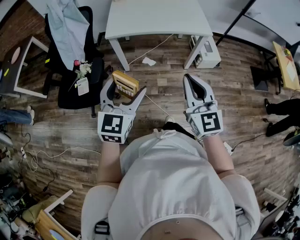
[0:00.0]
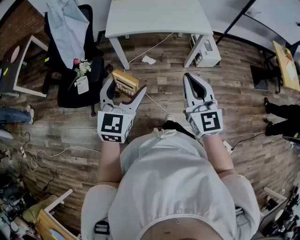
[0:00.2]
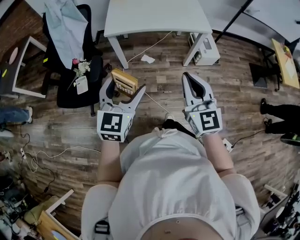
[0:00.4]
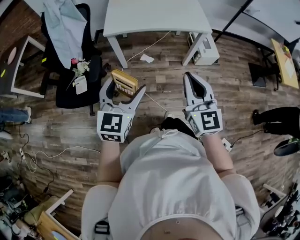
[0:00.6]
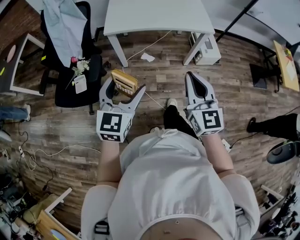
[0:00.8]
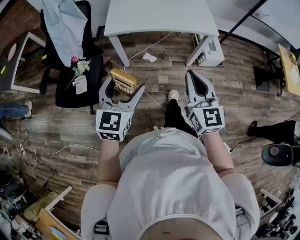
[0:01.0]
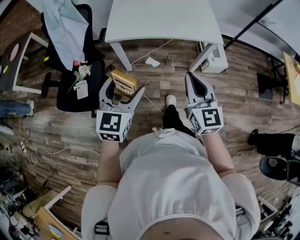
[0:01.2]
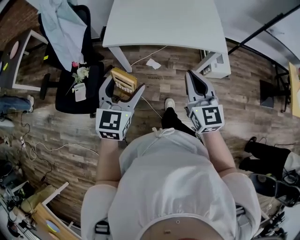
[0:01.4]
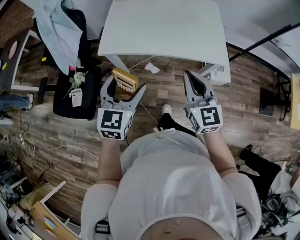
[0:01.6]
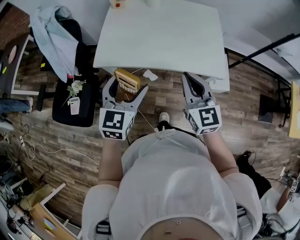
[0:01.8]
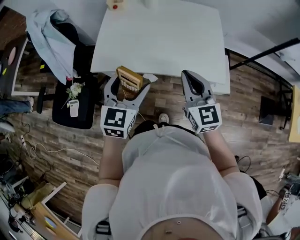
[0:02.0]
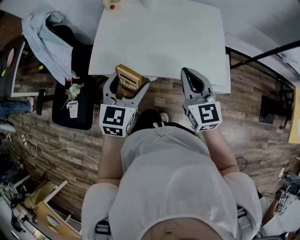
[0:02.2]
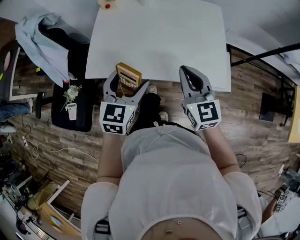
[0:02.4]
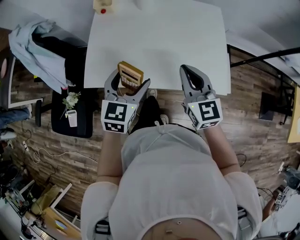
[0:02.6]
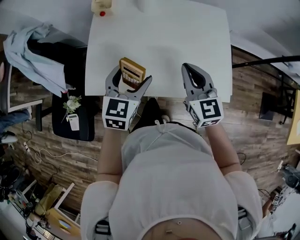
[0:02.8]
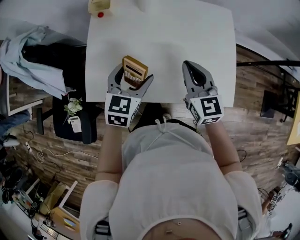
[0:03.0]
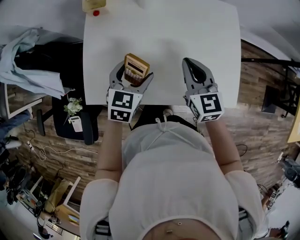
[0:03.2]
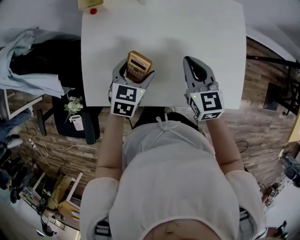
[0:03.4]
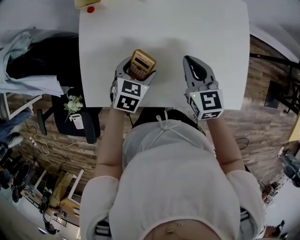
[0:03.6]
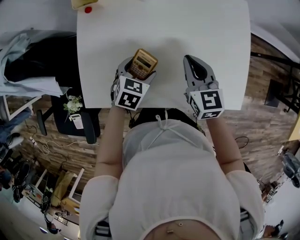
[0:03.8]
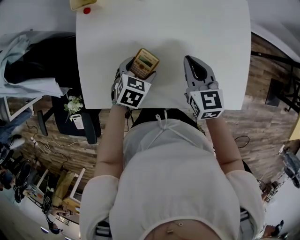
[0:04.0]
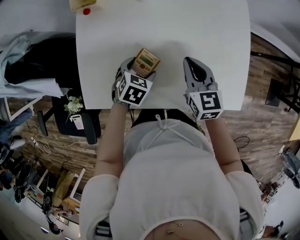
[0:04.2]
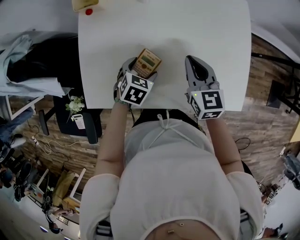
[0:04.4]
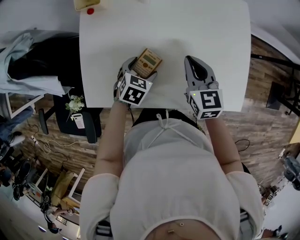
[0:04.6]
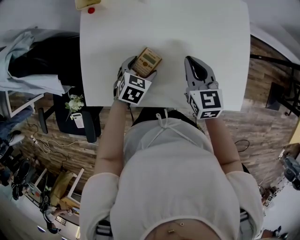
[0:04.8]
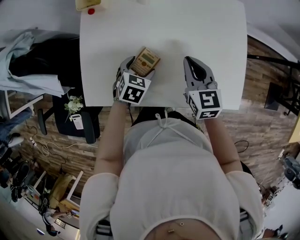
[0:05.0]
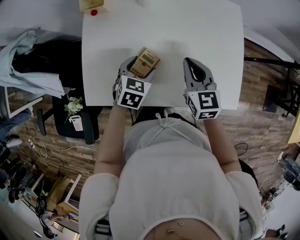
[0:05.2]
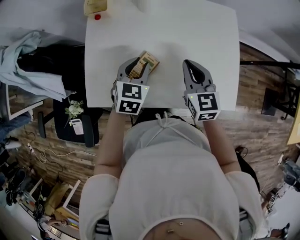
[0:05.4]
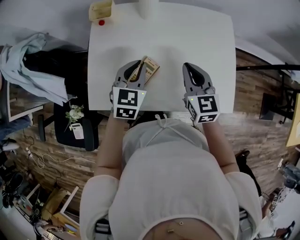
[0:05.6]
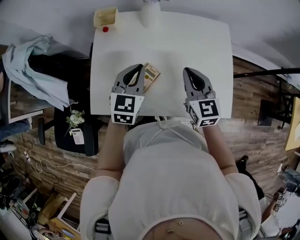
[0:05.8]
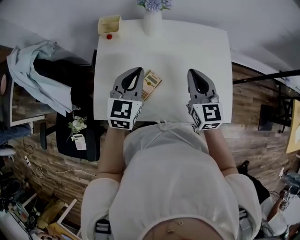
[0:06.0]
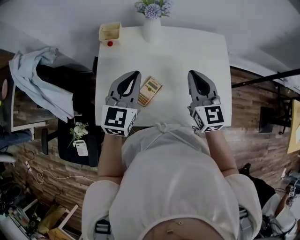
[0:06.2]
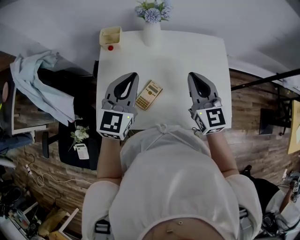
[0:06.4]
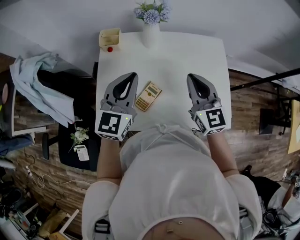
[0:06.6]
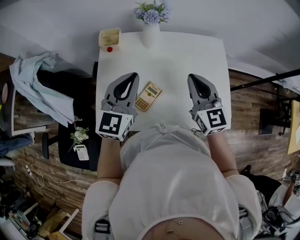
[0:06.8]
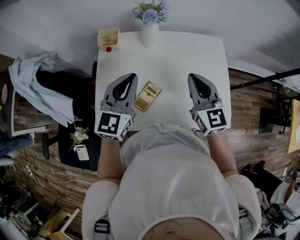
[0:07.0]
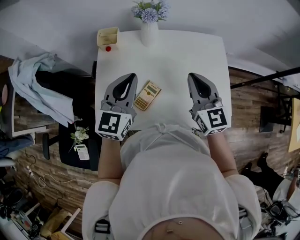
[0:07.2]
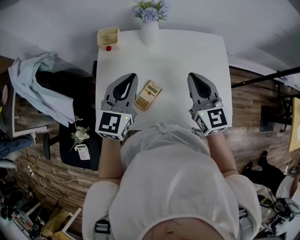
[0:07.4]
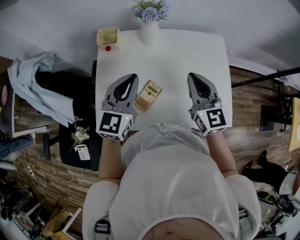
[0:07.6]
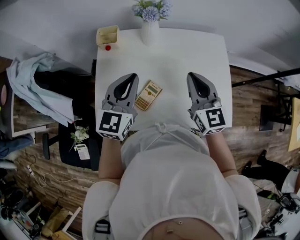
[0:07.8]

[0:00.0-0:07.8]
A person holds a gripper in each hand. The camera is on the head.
0:00.0 to 0:01.6: The two grippers go some 30 cm forward.
0:01.6 to 0:03.2: The grippers both shift forward by roughly 40 cm. The left gripper swivels roughly 20 degrees.
0:03.2 to 0:04.6: The left gripper is displaced downward by approximately 15 cm, and turns by about 20 degrees, while the right gripper travels downward by some 5 cm.
0:04.6 to 0:06.2: The right gripper travels upward by roughly 15 cm, and rotates about 20 degrees; the left gripper moves upward, approximately 30 cm, angles its fingers upward, by roughly 50 degrees, and closes.
0:06.2 to 0:07.8: The grippers move only a little.

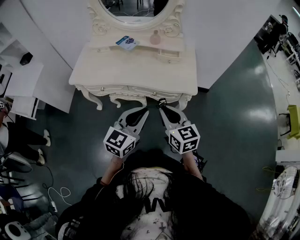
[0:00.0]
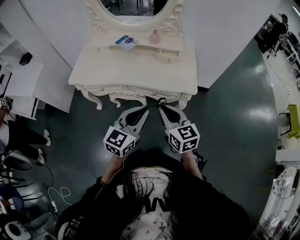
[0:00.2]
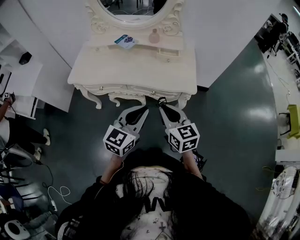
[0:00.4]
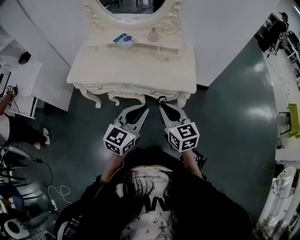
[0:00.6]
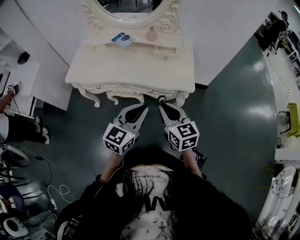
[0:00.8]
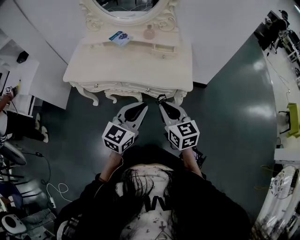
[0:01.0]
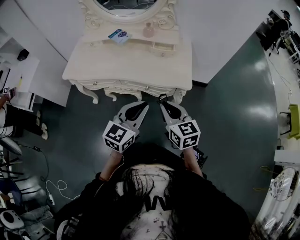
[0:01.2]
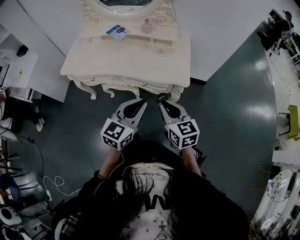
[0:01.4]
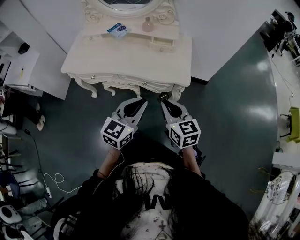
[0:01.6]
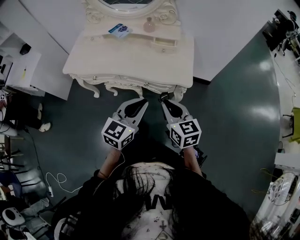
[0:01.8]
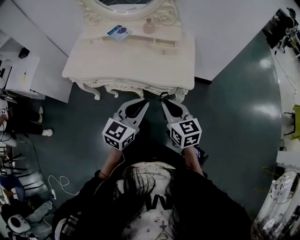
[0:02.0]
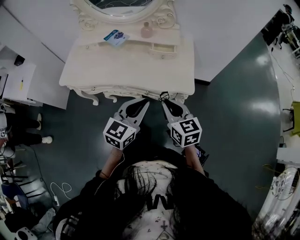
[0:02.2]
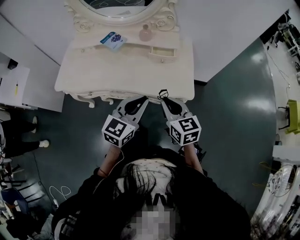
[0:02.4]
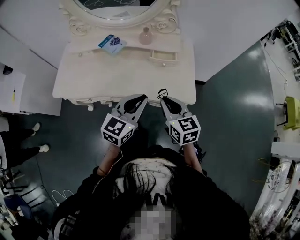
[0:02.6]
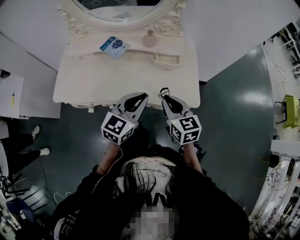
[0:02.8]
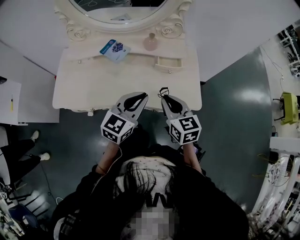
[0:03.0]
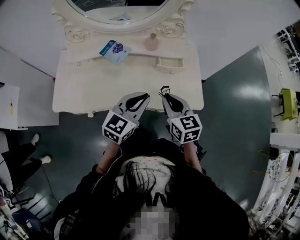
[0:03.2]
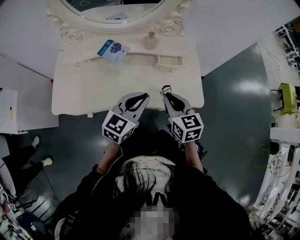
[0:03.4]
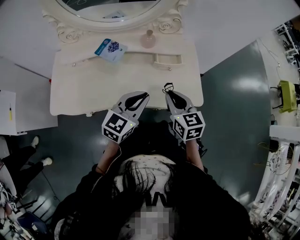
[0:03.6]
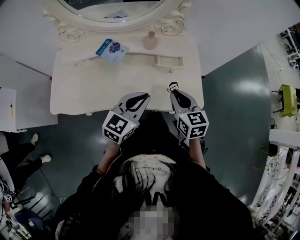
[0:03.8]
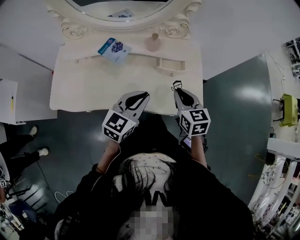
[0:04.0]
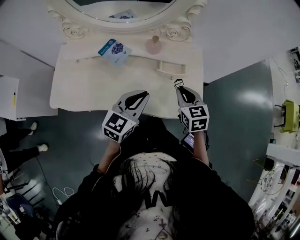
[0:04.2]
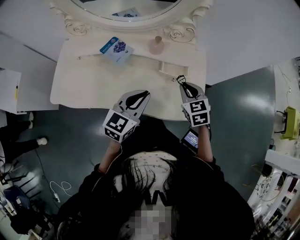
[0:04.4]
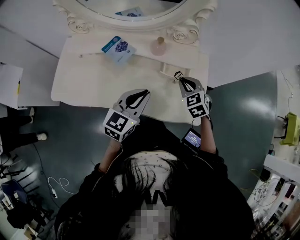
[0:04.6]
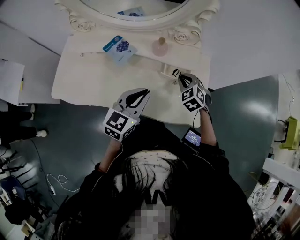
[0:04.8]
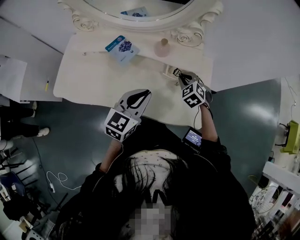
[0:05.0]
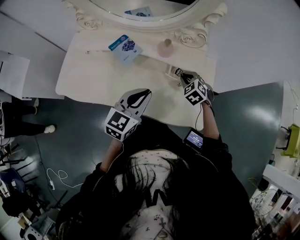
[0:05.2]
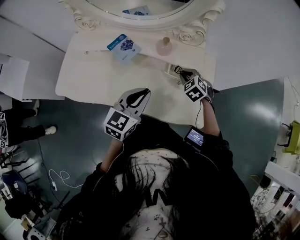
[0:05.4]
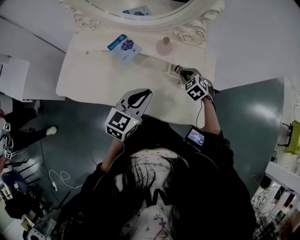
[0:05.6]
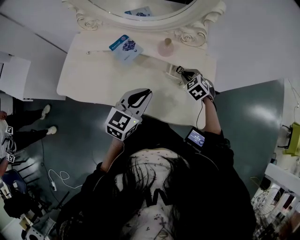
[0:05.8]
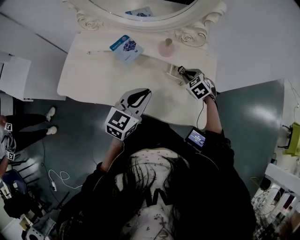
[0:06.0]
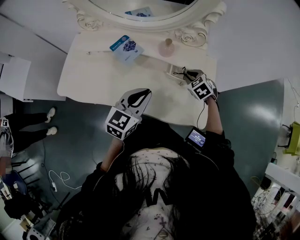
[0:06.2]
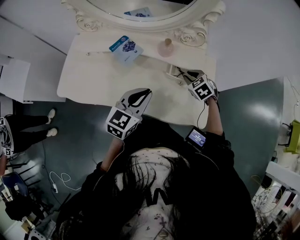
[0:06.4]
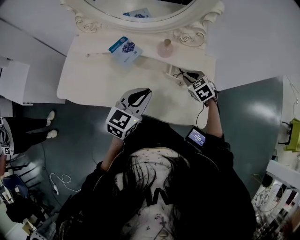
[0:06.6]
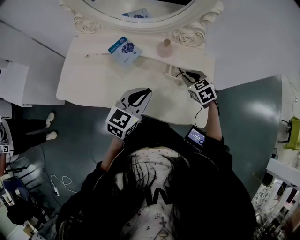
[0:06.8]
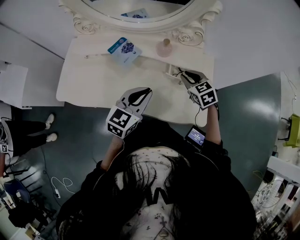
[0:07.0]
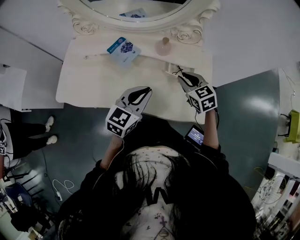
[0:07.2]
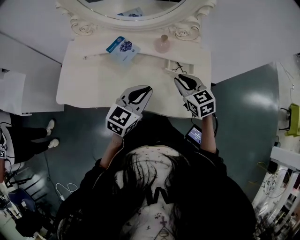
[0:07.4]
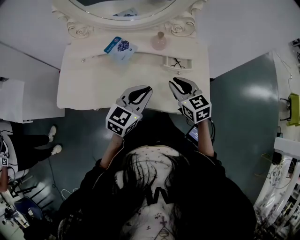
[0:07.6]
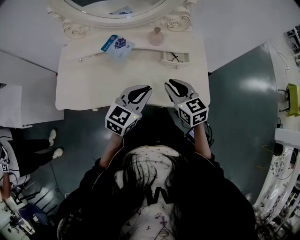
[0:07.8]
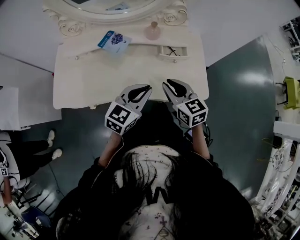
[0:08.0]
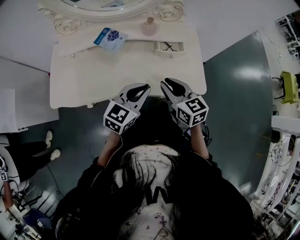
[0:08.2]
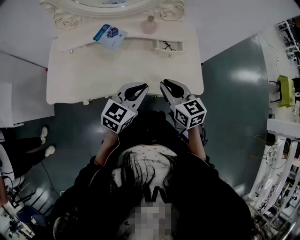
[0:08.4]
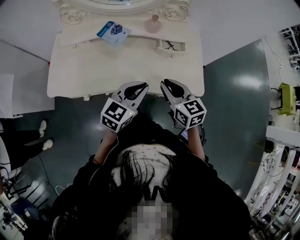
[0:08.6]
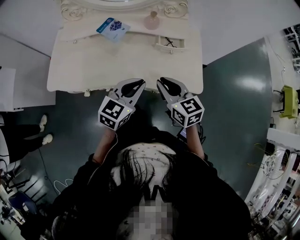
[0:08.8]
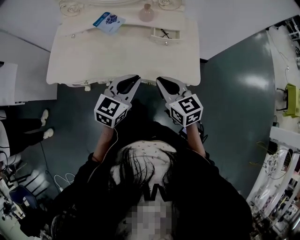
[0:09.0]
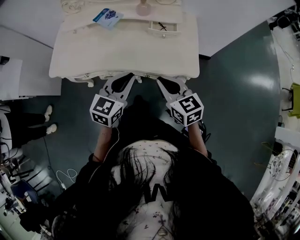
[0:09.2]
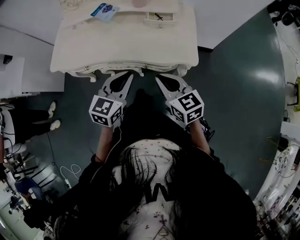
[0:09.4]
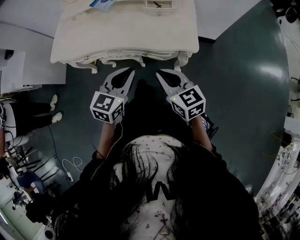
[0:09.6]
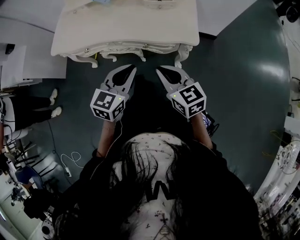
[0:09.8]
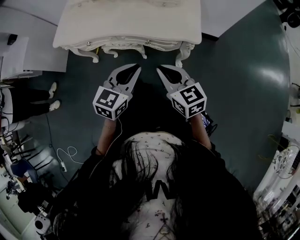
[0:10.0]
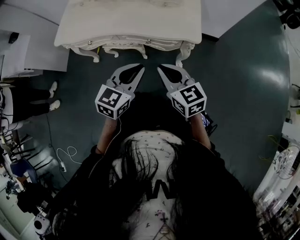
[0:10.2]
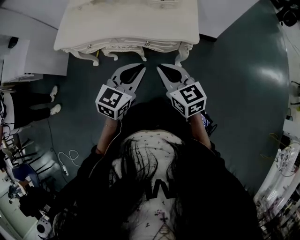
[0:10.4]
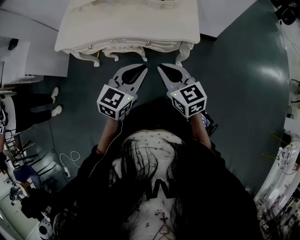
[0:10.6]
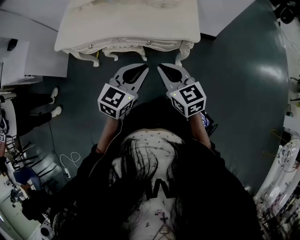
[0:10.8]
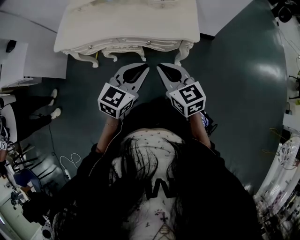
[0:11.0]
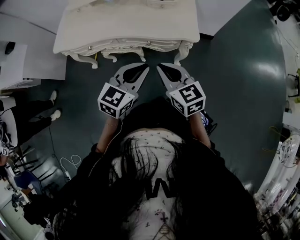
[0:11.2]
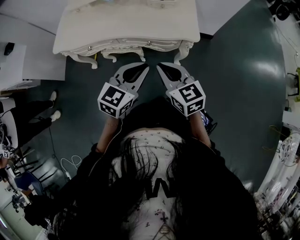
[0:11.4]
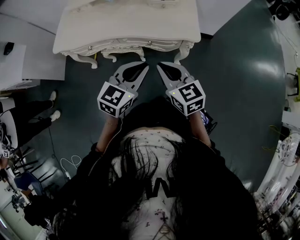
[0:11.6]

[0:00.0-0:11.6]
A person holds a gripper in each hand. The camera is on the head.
0:00.0 to 0:01.4: The two grippers go some 5 cm to the right.
0:01.4 to 0:02.8: The right gripper travels forward by some 20 cm. Meanwhile the left gripper heads forward and to the left, covering approximately 20 cm.
0:02.8 to 0:04.4: The right gripper heads forward, covering about 15 cm, and turns by approximately 20 degrees; the left gripper goes roughly 10 cm forward.
0:04.4 to 0:05.8: The right gripper moves downward and forward, some 15 cm, and changes its angle by approximately 30 degrees.
0:05.8 to 0:07.2: The right gripper moves upward, some 10 cm, and turns by roughly 30 degrees.
0:07.2 to 0:08.8: The right gripper moves backward, approximately 20 cm, and rotates roughly 20 degrees. The left gripper goes roughly 10 cm backward.
0:08.8 to 0:10.2: Both grippers travel together backward, some 20 cm.
0:10.2 to 0:11.6: The grippers stay close to where they were, moving slightly.

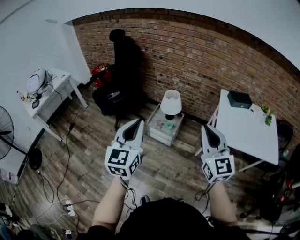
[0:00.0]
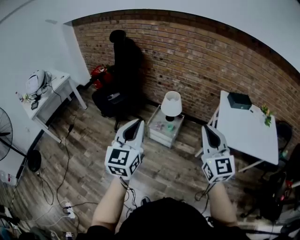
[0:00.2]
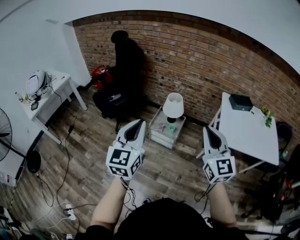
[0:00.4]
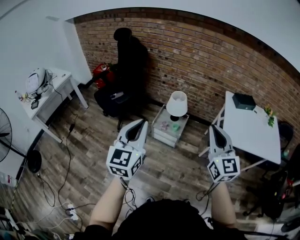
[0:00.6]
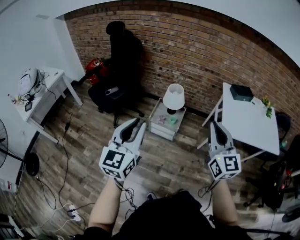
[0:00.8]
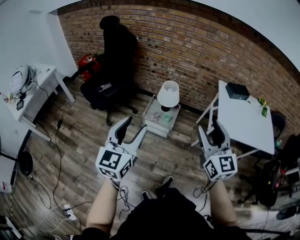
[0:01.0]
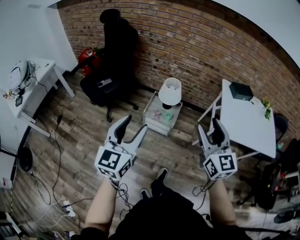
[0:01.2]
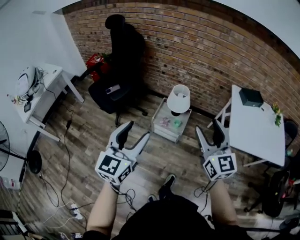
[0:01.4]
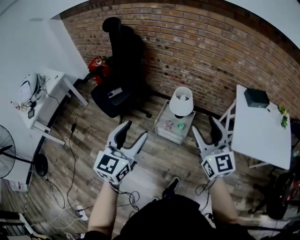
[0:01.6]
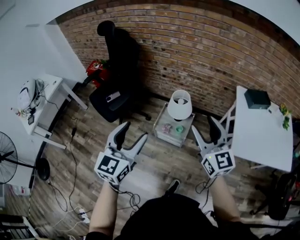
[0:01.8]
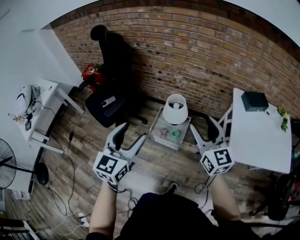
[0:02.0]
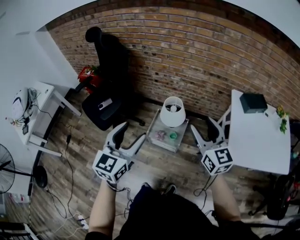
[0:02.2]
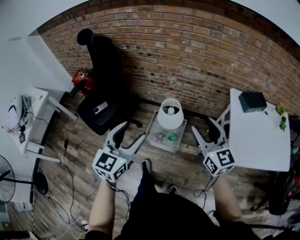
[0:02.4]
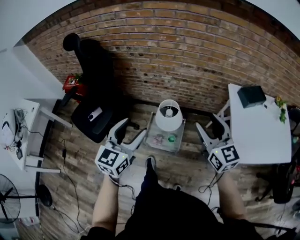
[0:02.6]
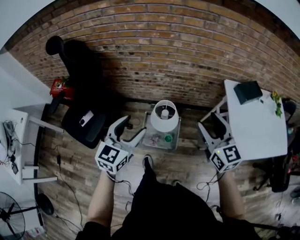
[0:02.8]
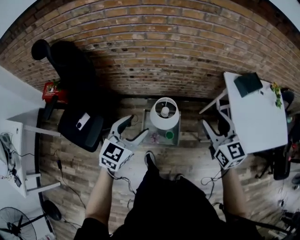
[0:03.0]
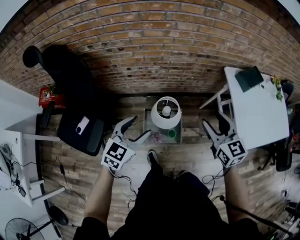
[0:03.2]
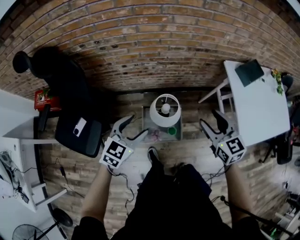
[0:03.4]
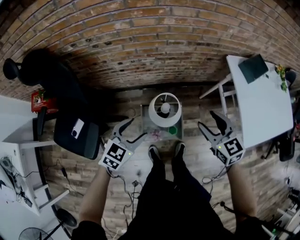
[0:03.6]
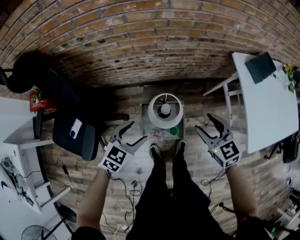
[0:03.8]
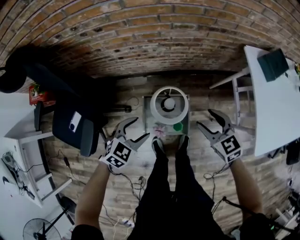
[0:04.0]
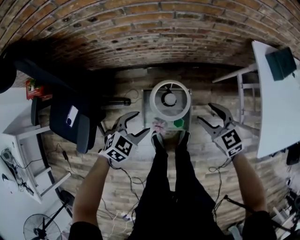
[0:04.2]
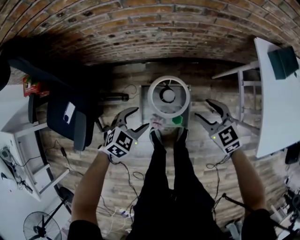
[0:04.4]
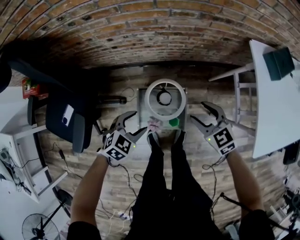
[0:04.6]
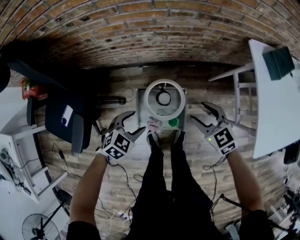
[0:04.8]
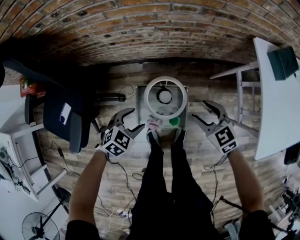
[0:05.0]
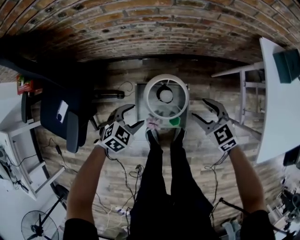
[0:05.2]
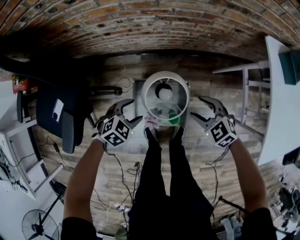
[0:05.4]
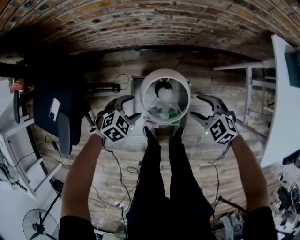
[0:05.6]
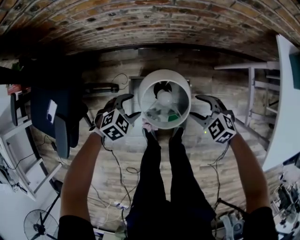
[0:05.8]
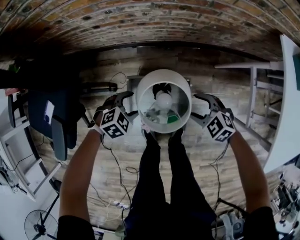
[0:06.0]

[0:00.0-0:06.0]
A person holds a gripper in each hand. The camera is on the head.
0:00.0 to 0:01.6: Both grippers move forward and to the left, approximately 20 cm. The right gripper opens up, while the left gripper opens its fingers.
0:01.6 to 0:03.0: The grippers both shift forward by about 35 cm. The left gripper changes its angle by some 30 degrees; the right gripper changes its angle by about 20 degrees.
0:03.0 to 0:04.4: The grippers both shift downward by about 35 cm. The left gripper swivels approximately 30 degrees. The right gripper changes its angle by roughly 30 degrees.
0:04.4 to 0:06.0: The two grippers go approximately 20 cm downward. The right gripper changes its angle by some 30 degrees.
